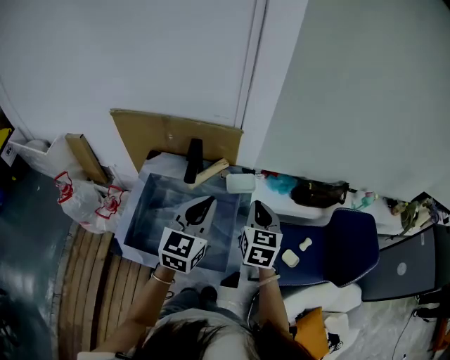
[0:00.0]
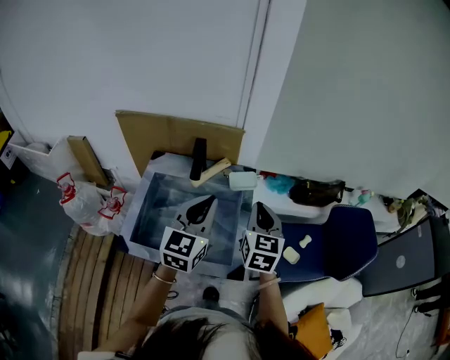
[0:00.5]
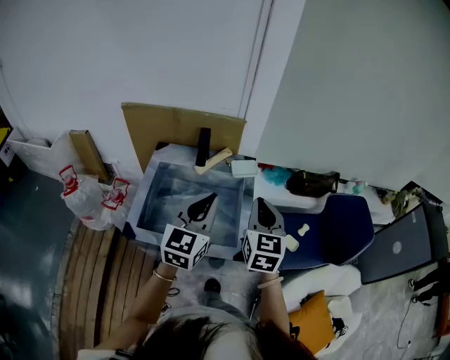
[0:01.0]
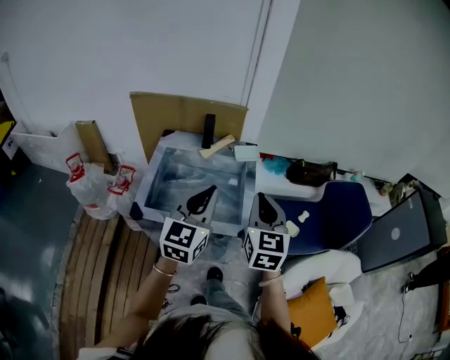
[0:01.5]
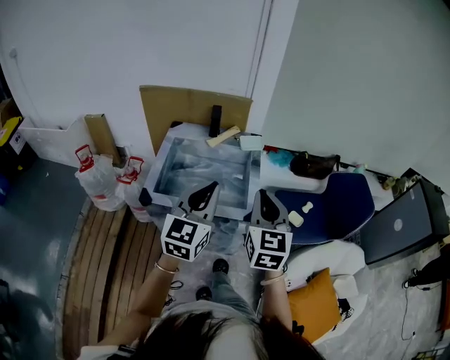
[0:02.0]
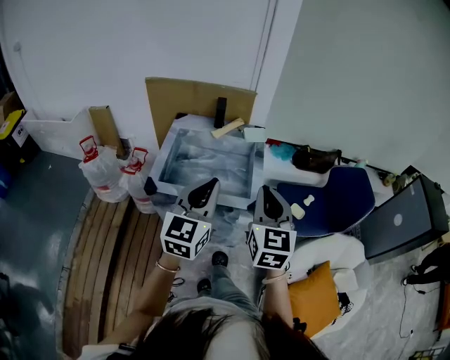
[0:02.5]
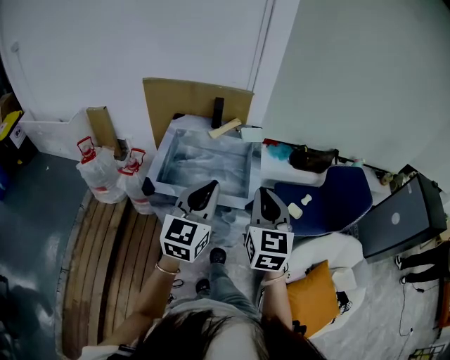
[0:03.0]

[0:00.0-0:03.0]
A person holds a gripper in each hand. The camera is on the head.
0:00.0 to 0:01.5: Both grippers travel together backward, roughly 20 cm.
0:01.5 to 0:03.0: The two grippers go roughly 10 cm backward.

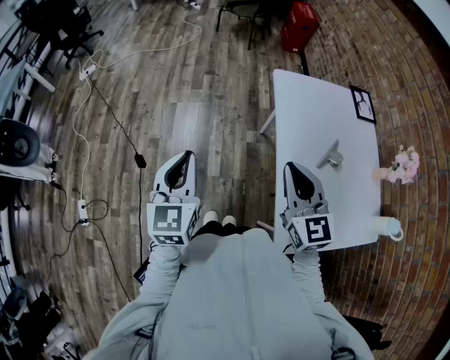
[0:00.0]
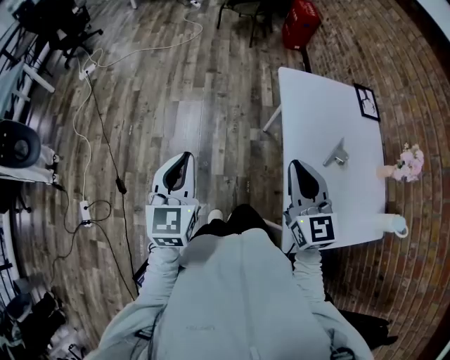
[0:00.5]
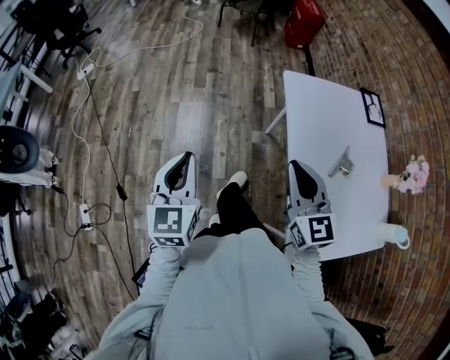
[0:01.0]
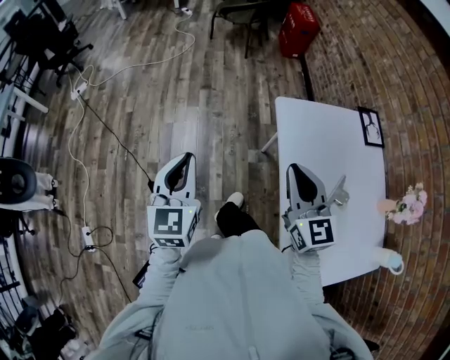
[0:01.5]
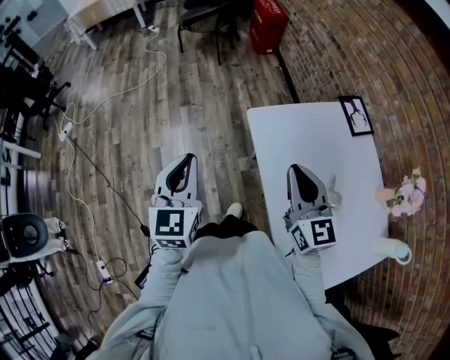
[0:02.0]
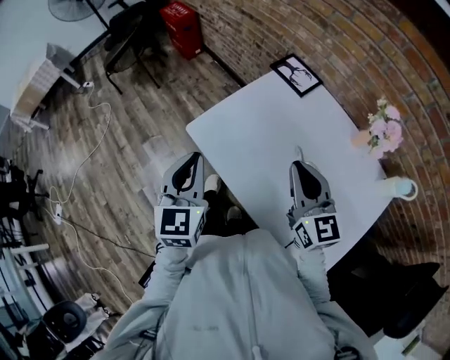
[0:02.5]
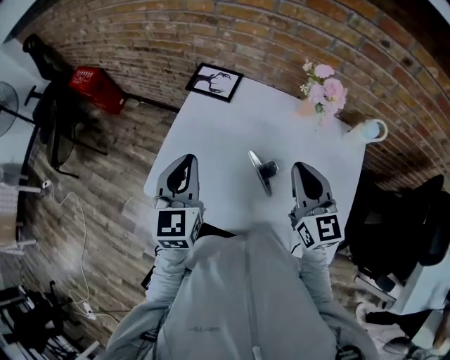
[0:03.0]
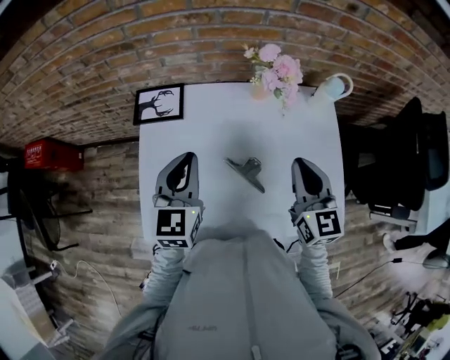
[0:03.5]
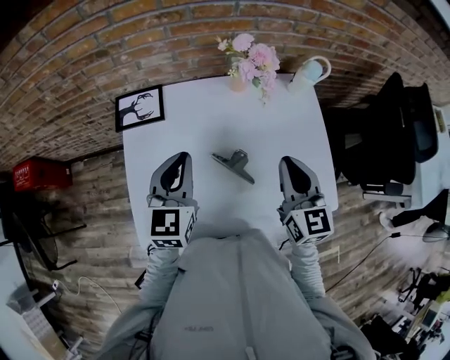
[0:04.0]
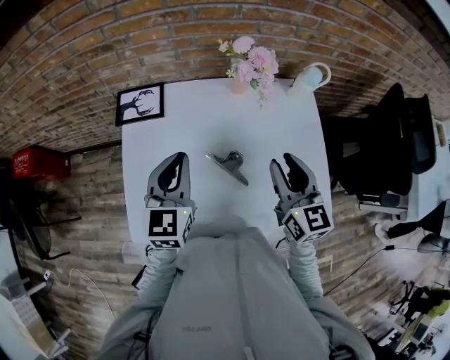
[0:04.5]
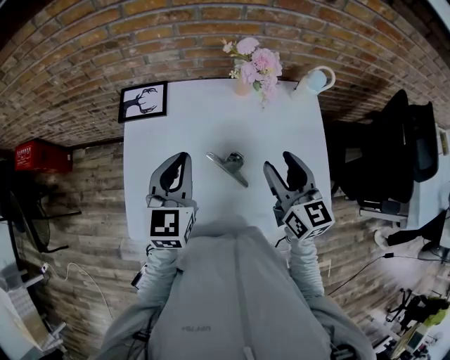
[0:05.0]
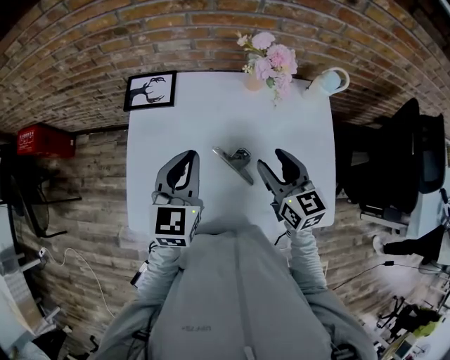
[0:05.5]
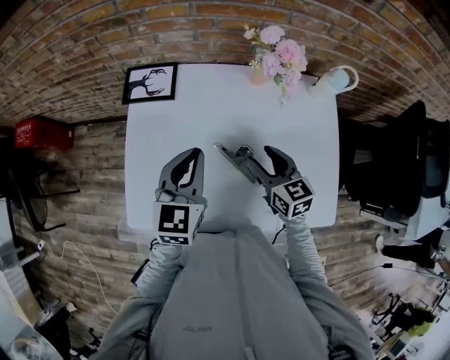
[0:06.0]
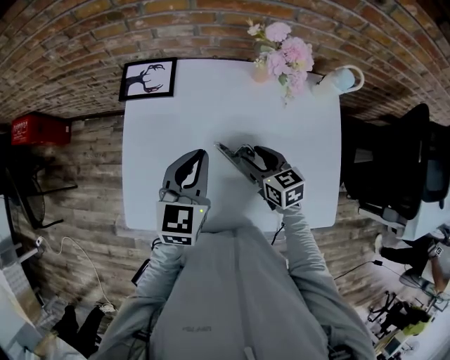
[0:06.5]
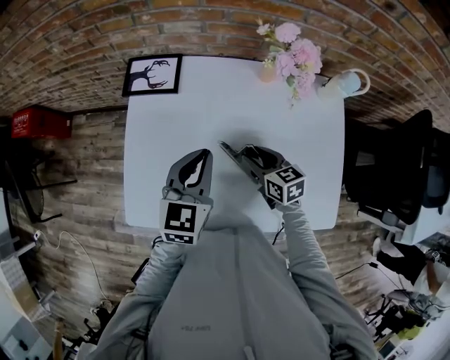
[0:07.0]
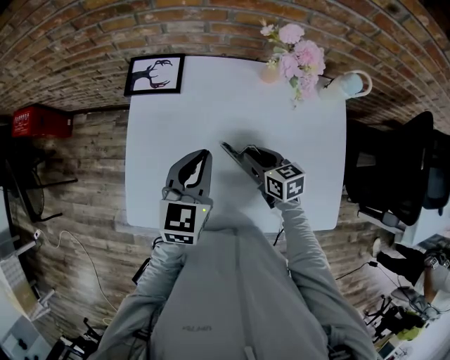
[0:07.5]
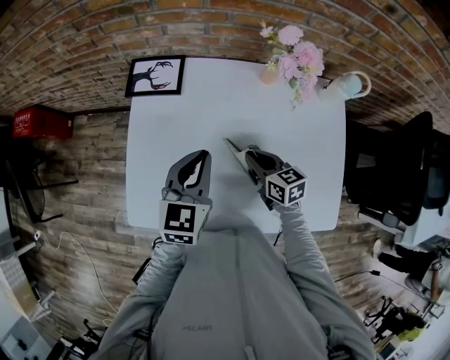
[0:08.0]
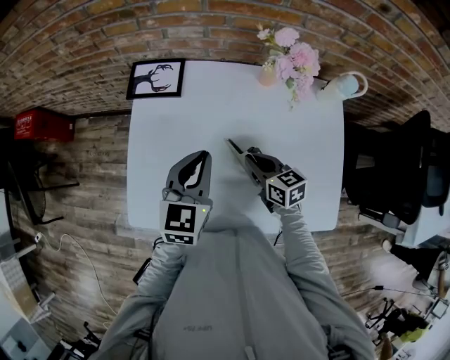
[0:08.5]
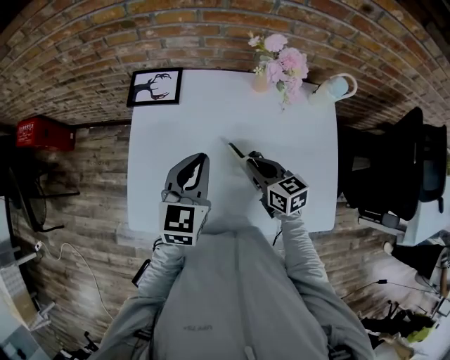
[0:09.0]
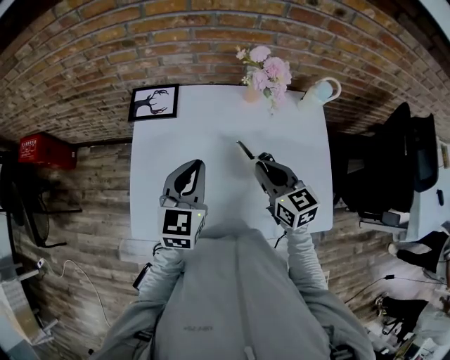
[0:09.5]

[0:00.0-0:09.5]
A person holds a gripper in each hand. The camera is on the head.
0:00.0 to 0:02.0: The left gripper is displaced forward by some 25 cm; the right gripper shifts about 25 cm forward and to the right.
0:02.0 to 0:04.0: The left gripper ends up roughly 50 cm from where it was, and rotates approximately 90 degrees; the right gripper shifts by some 30 cm, and rotates some 90 degrees.
0:04.0 to 0:05.5: The right gripper shifts some 5 cm downward, swivels approximately 20 degrees, and opens.
0:05.5 to 0:07.5: The right gripper travels downward by roughly 15 cm, turns by approximately 30 degrees, and closes, while the left gripper changes place by some 5 cm.
0:07.5 to 0:09.5: The right gripper heads upward, covering some 15 cm, and turns by roughly 20 degrees.

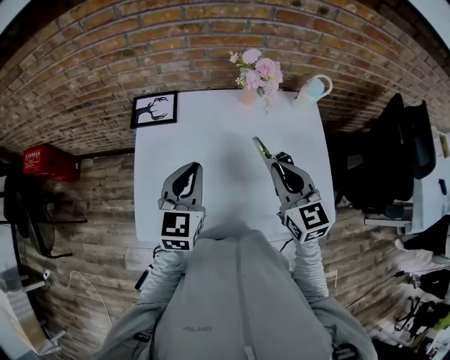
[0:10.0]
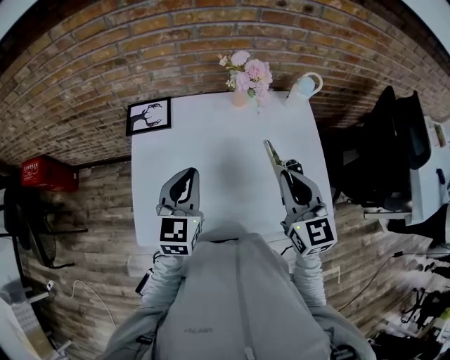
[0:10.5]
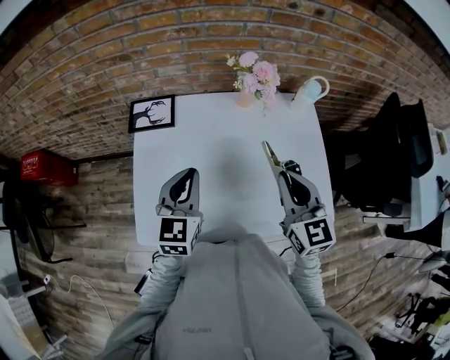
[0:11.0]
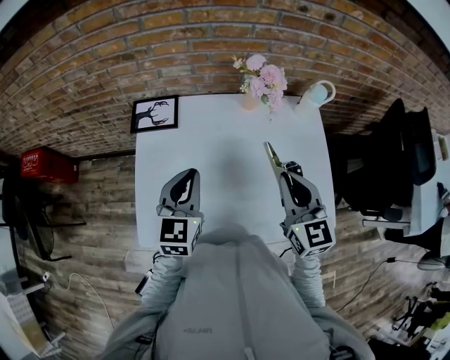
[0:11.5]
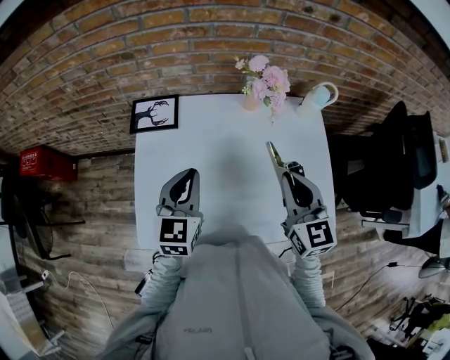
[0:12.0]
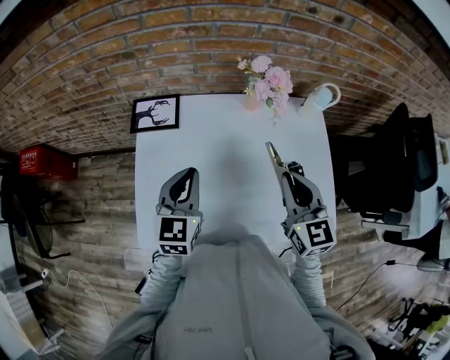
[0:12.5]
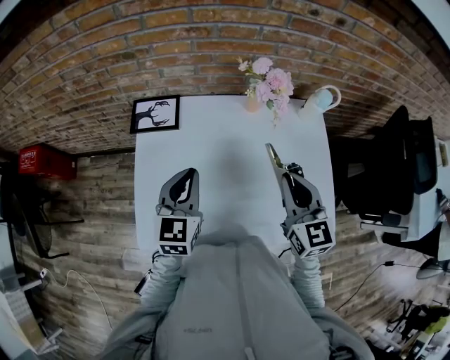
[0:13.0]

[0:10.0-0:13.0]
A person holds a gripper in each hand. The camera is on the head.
0:10.0 to 0:13.0: The grippers move only a little.

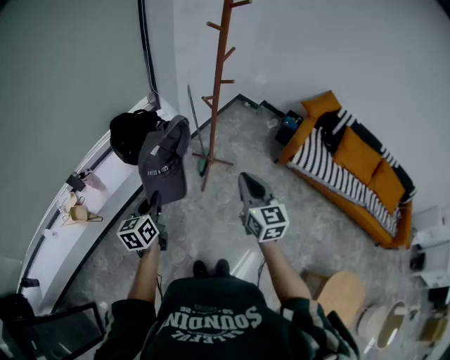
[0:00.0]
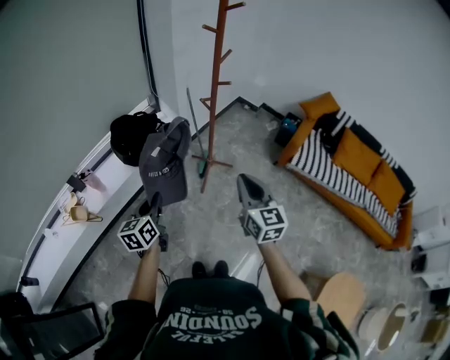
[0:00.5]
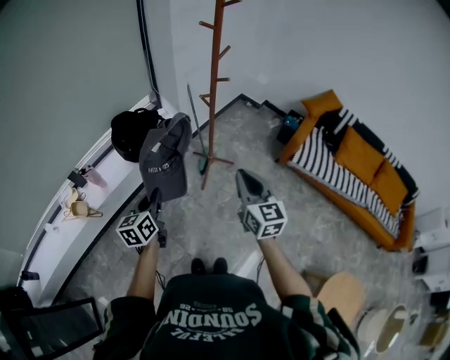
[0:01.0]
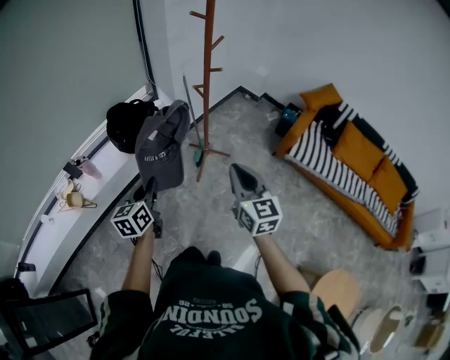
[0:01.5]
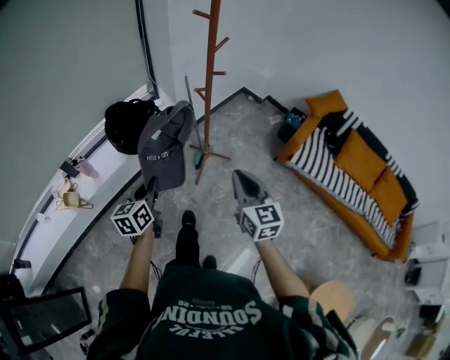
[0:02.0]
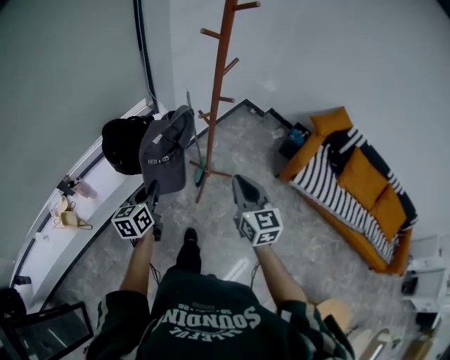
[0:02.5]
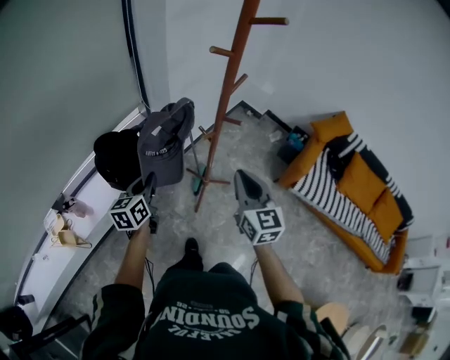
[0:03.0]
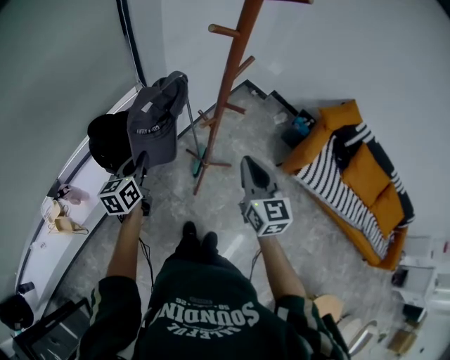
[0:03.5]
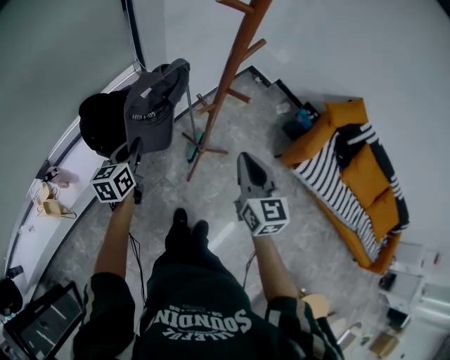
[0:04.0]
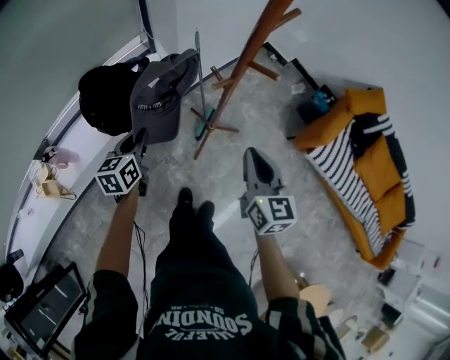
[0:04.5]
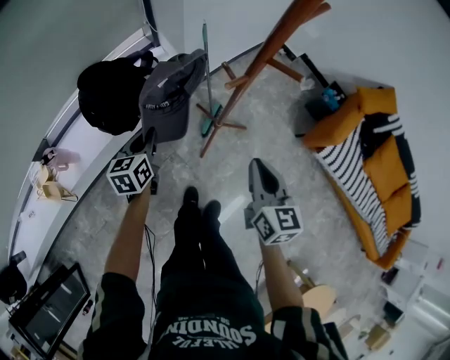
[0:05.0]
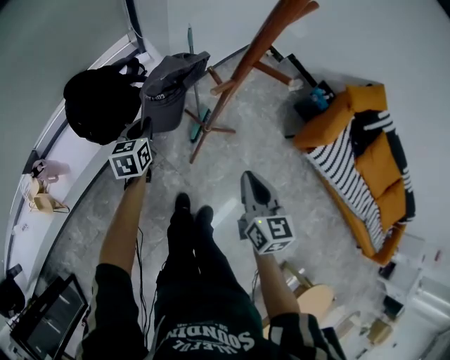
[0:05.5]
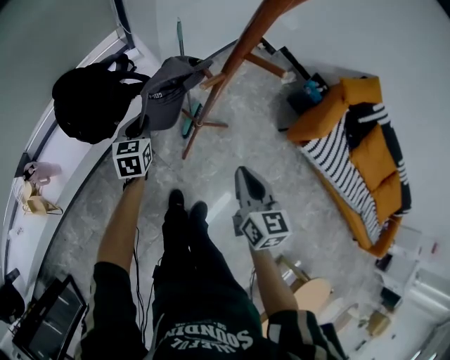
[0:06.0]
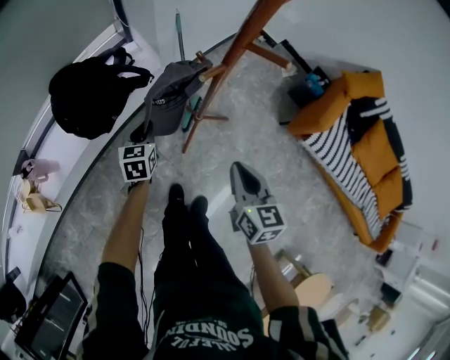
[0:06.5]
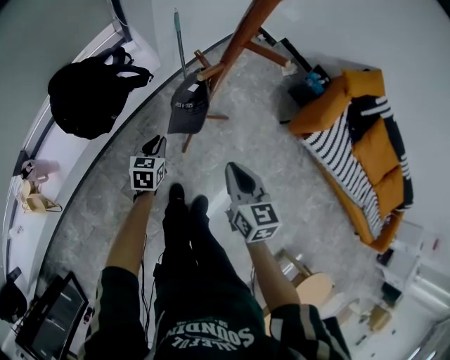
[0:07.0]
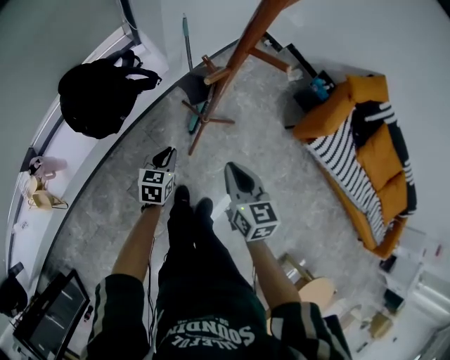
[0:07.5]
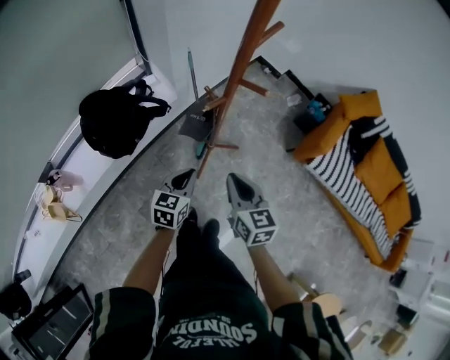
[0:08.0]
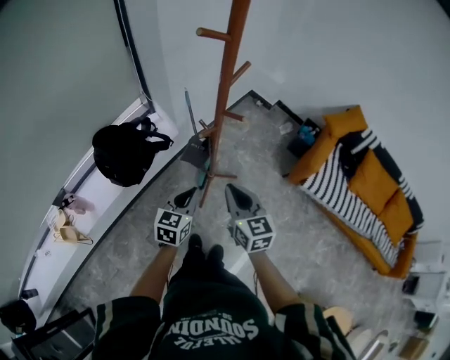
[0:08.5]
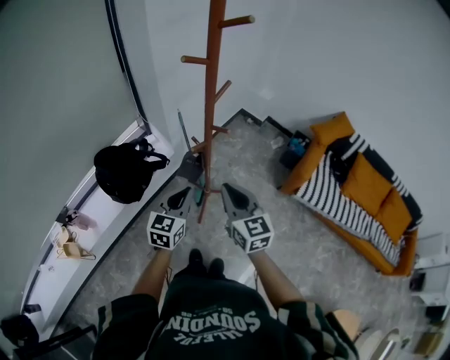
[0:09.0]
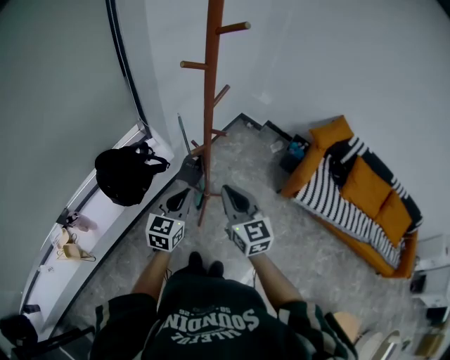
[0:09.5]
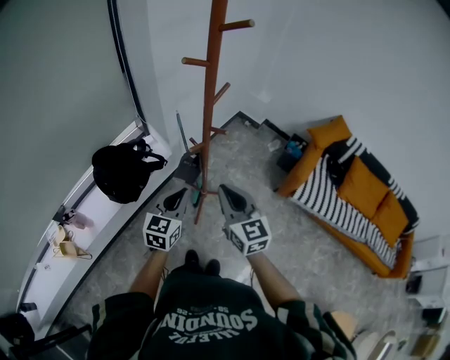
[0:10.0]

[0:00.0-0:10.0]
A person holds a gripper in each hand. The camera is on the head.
0:00.0 to 0:02.0: The grippers both shift to the right by approximately 5 cm.
0:02.0 to 0:04.0: The two grippers go roughly 30 cm forward.
0:04.0 to 0:06.0: The grippers both shift downward by approximately 15 cm.
0:06.0 to 0:08.0: The left gripper is displaced backward, to the right and upward by approximately 20 cm, and changes its angle by roughly 20 degrees.
0:08.0 to 0:10.0: The grippers both shift upward by approximately 20 cm.

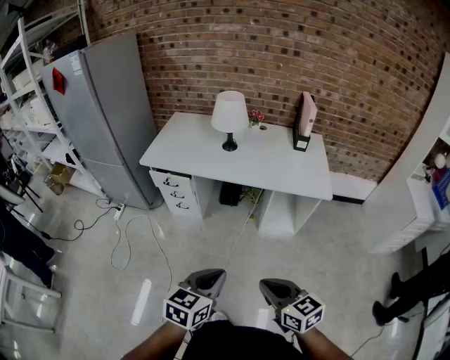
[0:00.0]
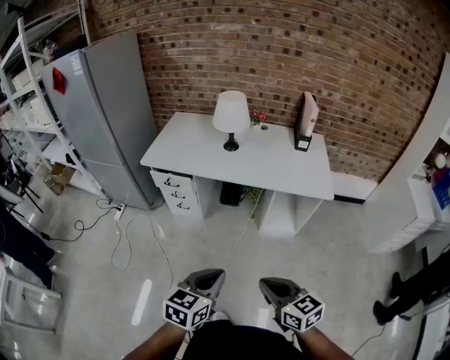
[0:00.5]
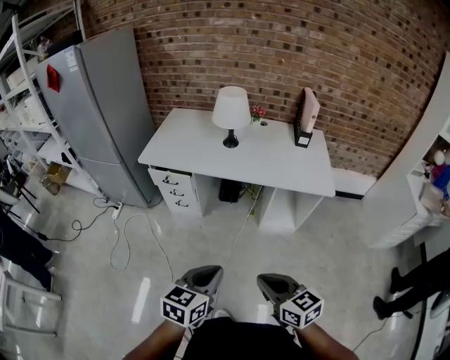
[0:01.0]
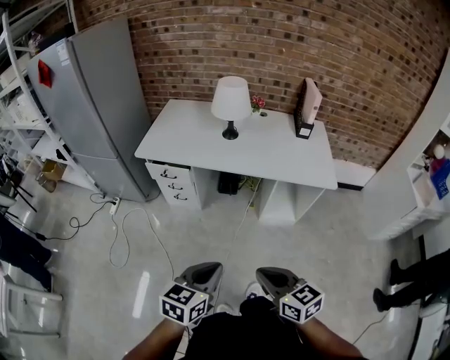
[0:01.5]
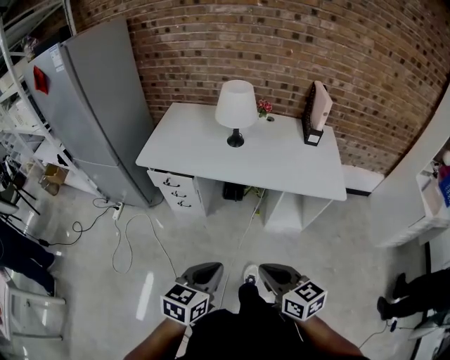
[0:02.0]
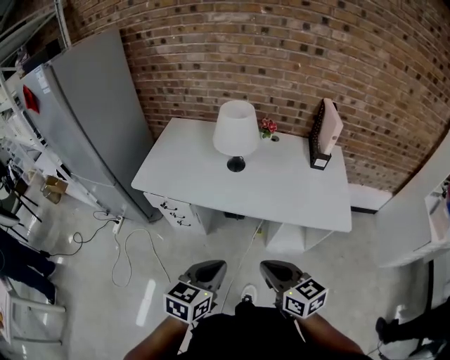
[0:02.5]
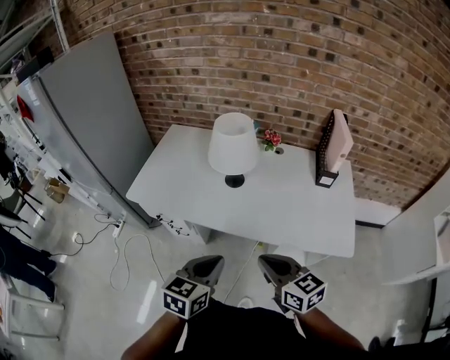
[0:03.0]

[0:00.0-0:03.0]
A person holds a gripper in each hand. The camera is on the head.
0:00.0 to 0:01.5: The right gripper goes approximately 5 cm to the left. Meanwhile the left gripper ends up about 5 cm from where it was.
0:01.5 to 0:03.0: The grippers both shift forward by roughly 35 cm.
